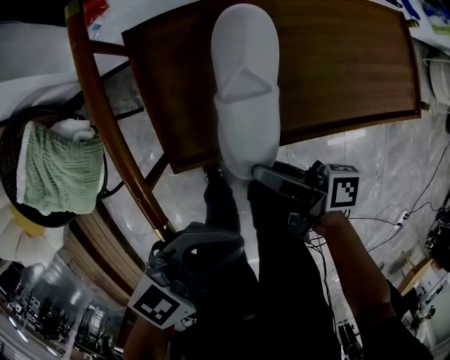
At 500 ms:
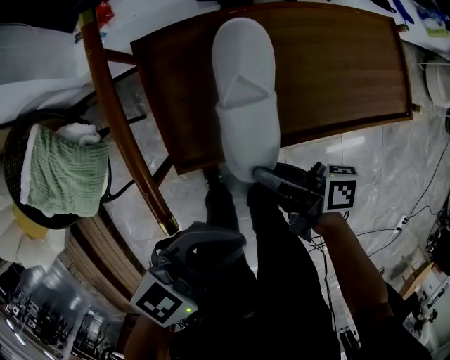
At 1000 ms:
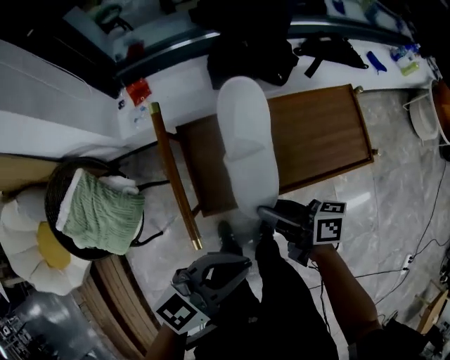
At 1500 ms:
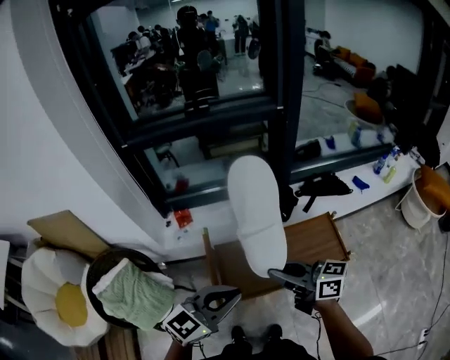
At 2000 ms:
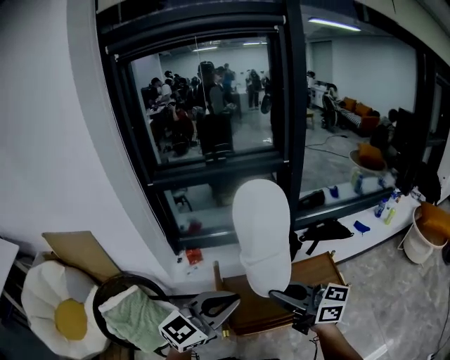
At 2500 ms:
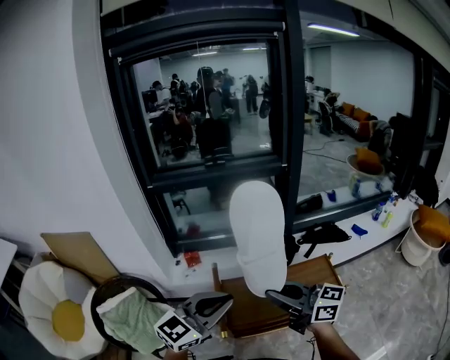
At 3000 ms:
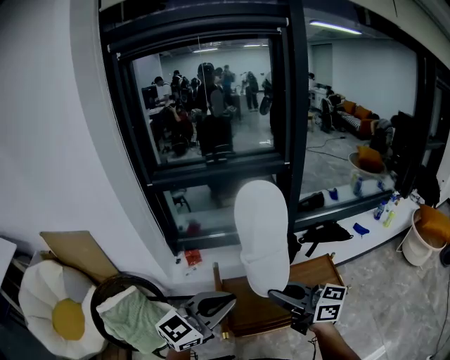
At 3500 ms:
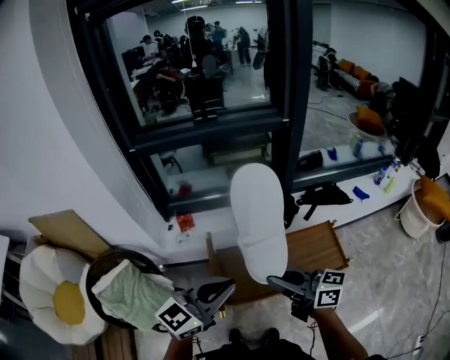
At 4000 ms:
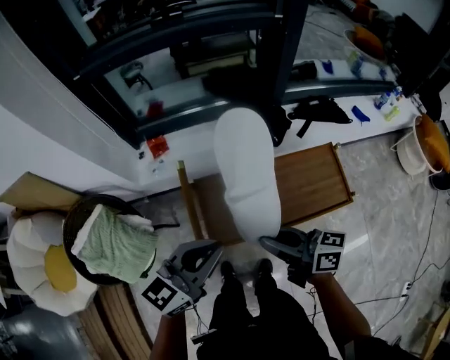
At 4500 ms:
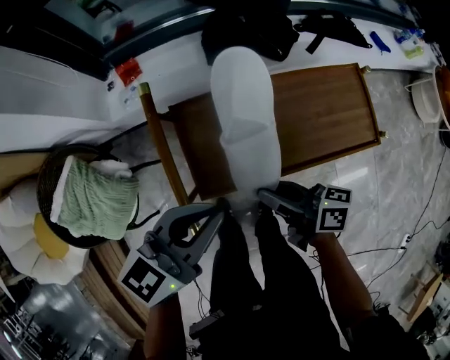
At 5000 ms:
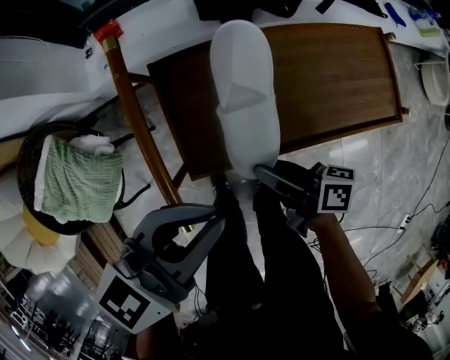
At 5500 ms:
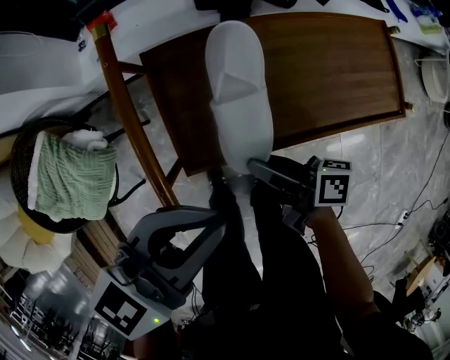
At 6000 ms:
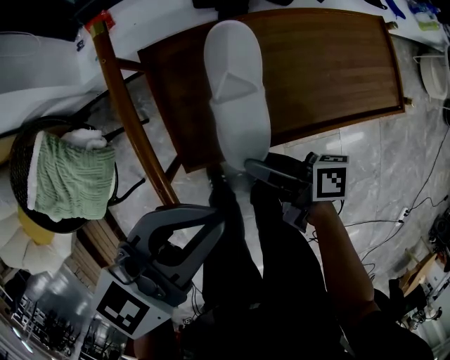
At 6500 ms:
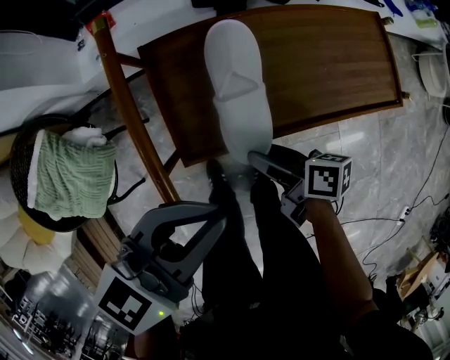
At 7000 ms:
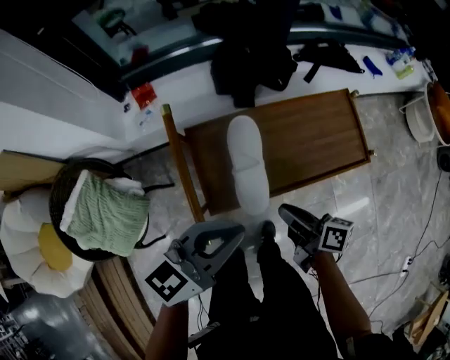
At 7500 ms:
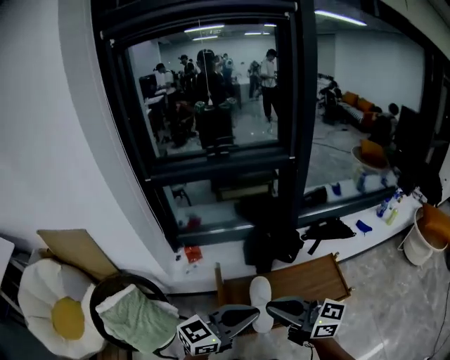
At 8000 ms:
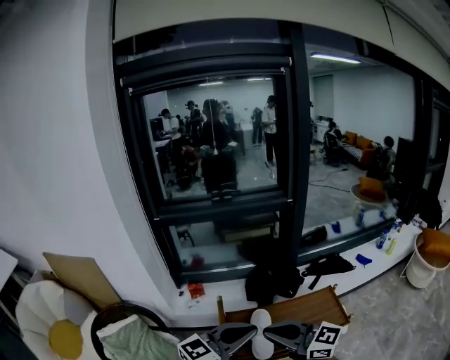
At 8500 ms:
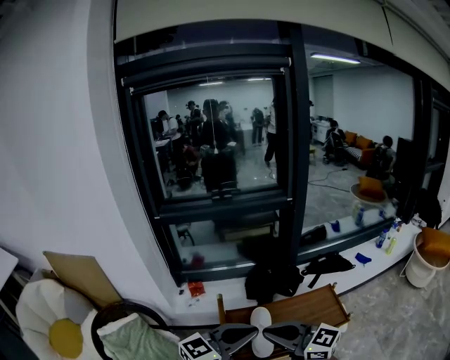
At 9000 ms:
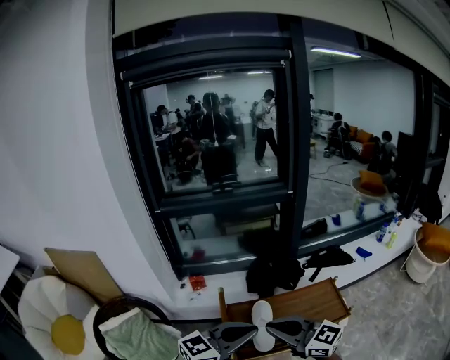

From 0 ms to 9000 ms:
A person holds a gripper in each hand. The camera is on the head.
From 0 ms to 2000 ms: Both grippers move upward, approximately 50 cm. The right gripper rotates around the line of its fingers by roughly 70 degrees, counterclockwise from behind, while the left gripper changes its angle by approximately 30 degrees.
From 2000 ms to 4500 ms: The two grippers go approximately 35 cm downward. The right gripper twists some 40 degrees clockwise, seen from behind. The left gripper rotates some 30 degrees.
From 4500 ms to 7000 ms: The right gripper travels downward and back again, roughly 15 cm each way, and opens, then closes once more.
From 7000 ms to 9000 ms: The right gripper shifts some 35 cm upward, and rotates around the line of its fingers by approximately 70 degrees, counterclockwise from behind; the left gripper travels upward by roughly 25 cm.

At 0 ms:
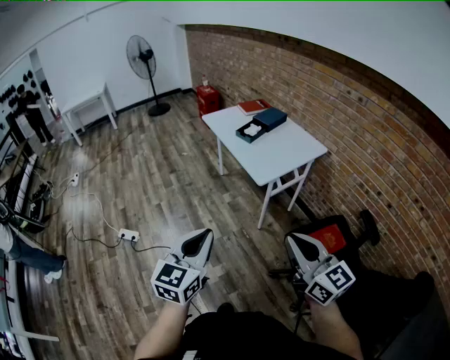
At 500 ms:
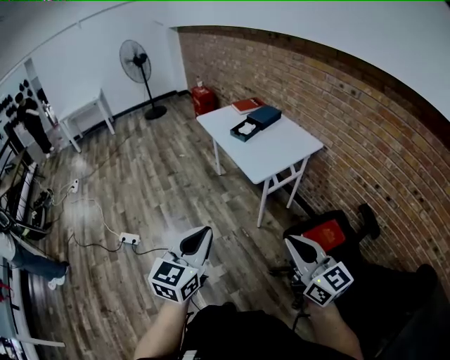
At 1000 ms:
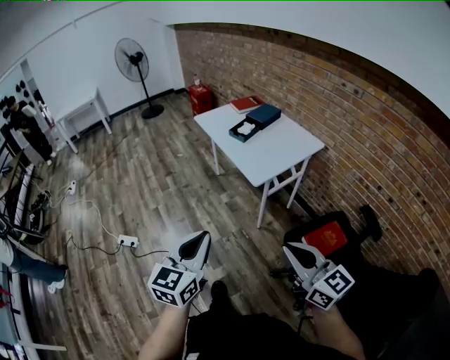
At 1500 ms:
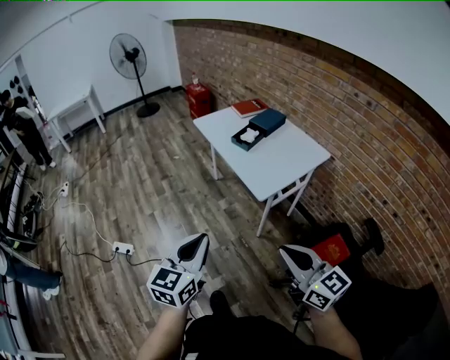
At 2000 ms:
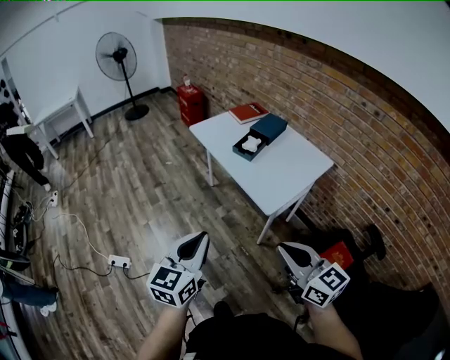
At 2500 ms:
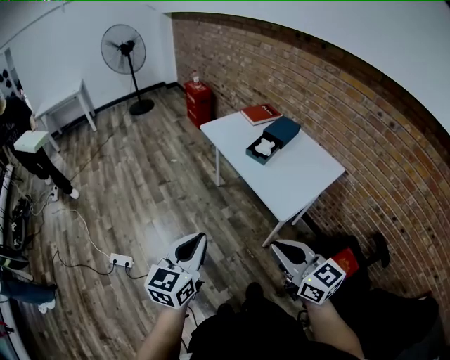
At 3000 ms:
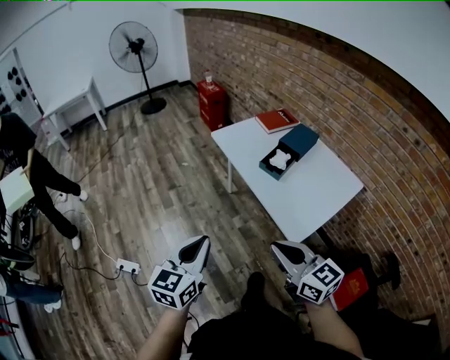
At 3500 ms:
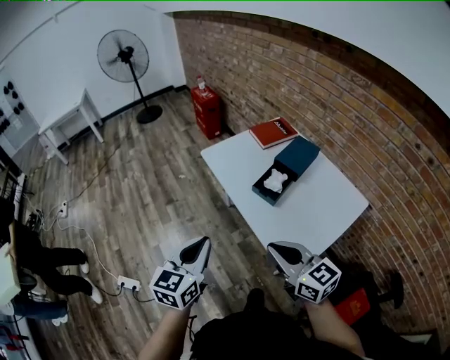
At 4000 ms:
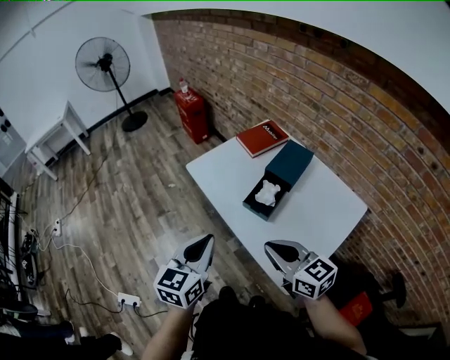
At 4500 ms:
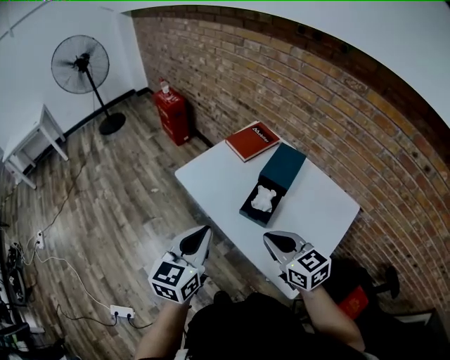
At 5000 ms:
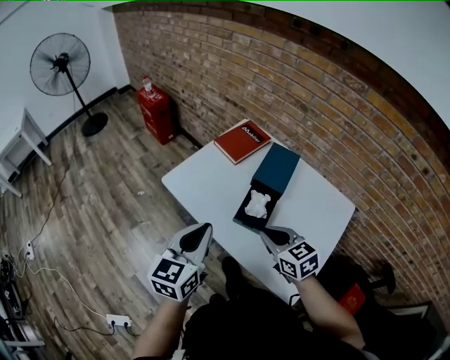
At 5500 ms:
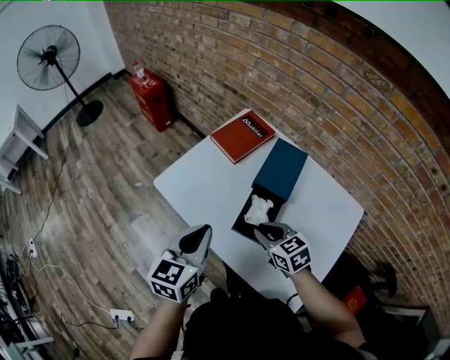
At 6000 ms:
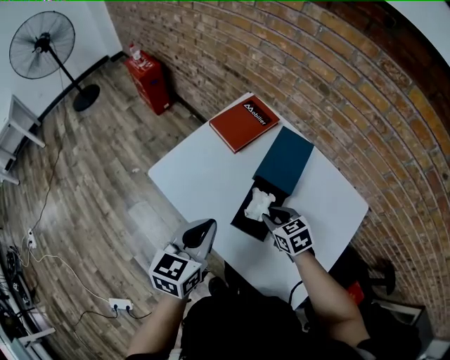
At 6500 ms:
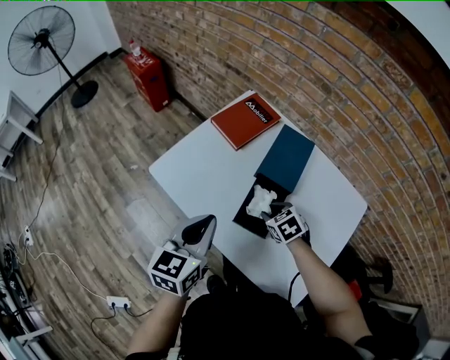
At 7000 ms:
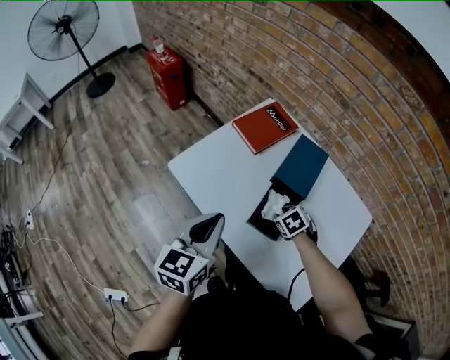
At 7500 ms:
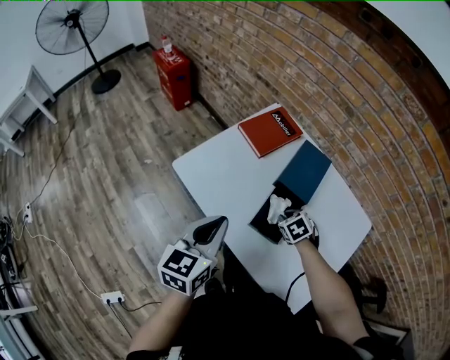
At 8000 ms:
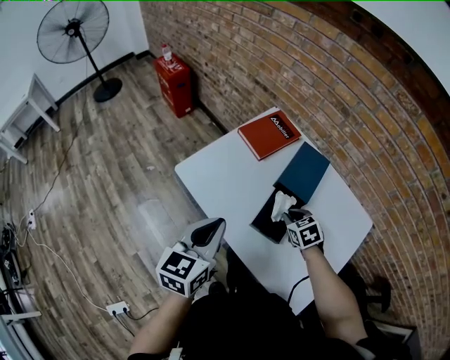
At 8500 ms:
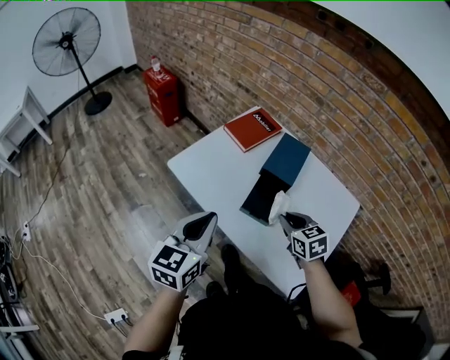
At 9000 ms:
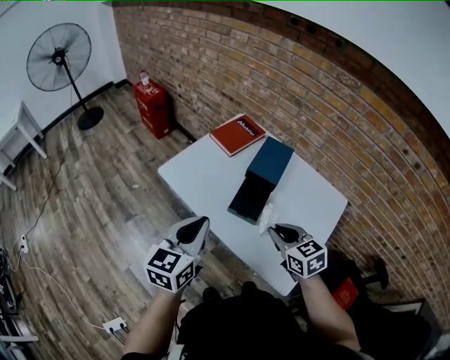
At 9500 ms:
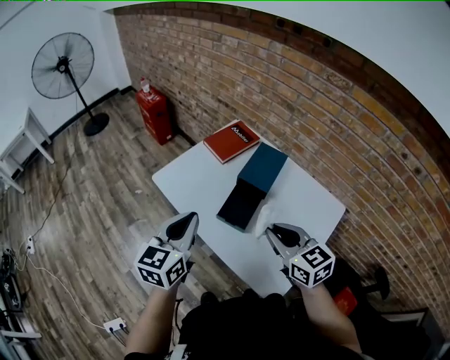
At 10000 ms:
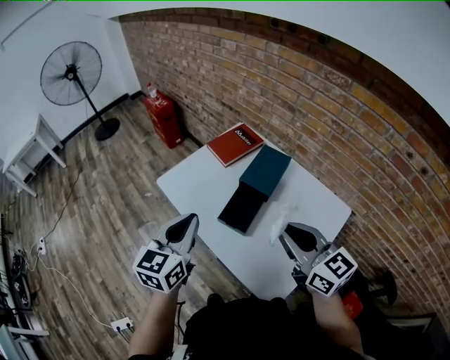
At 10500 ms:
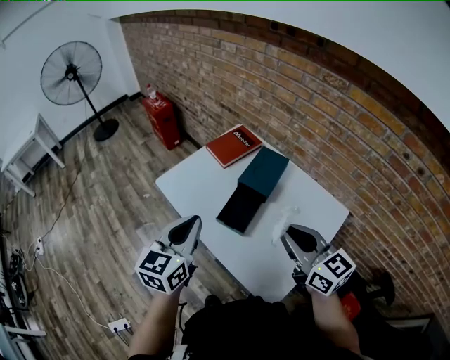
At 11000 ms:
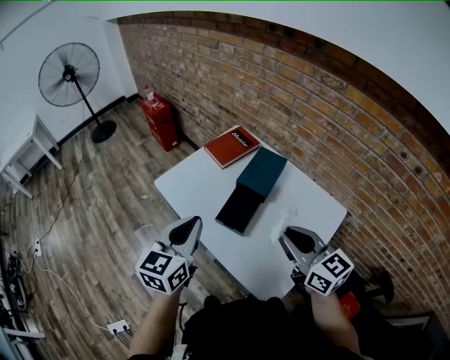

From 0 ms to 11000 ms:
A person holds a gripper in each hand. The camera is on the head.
From 0 ms to 2000 ms: The two grippers go roughly 20 cm forward.
From 2000 ms to 3500 ms: Both grippers travel together forward, roughly 30 cm.
From 3500 ms to 5500 ms: The right gripper is displaced forward and downward by roughly 35 cm, and turns by about 30 degrees; the left gripper moves forward, roughly 30 cm.
From 5500 ms to 7500 ms: The right gripper travels downward, forward and to the right by roughly 15 cm, and tilts its fingers roughly 30 degrees downward.
From 7500 ms to 9000 ms: The left gripper shifts approximately 10 cm backward and upward. Meanwhile the right gripper heads upward and backward, covering about 25 cm, and points its fingers about 30 degrees further upward.
From 9000 ms to 11000 ms: The left gripper heads to the right, covering roughly 5 cm; the right gripper goes some 15 cm upward and to the right, and swivels some 30 degrees.

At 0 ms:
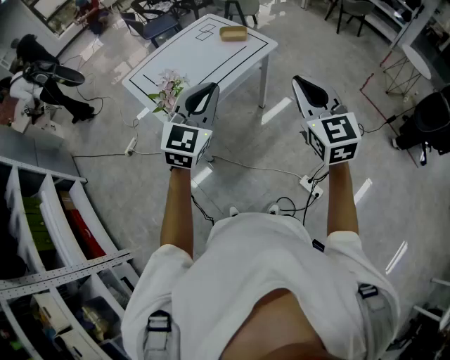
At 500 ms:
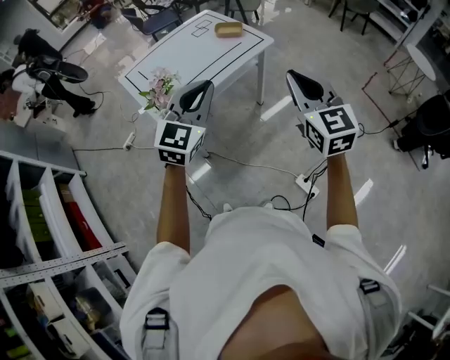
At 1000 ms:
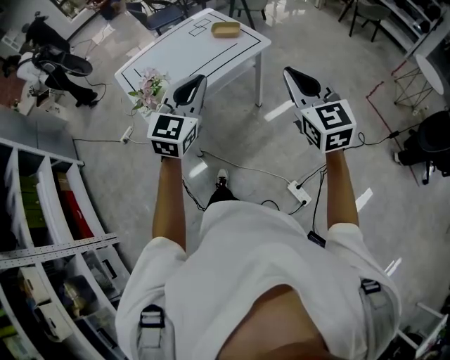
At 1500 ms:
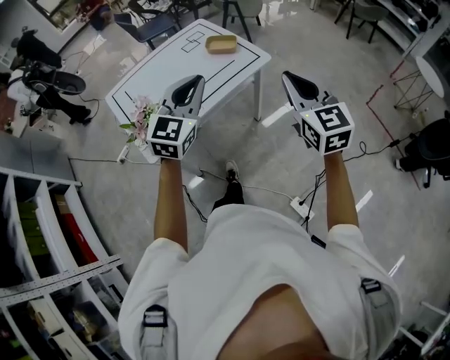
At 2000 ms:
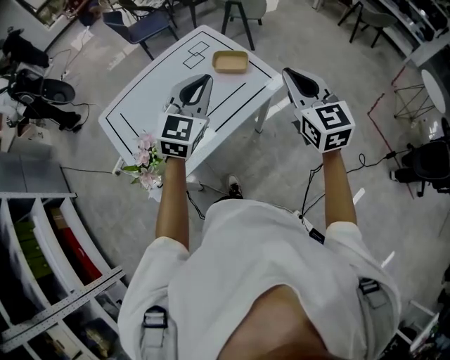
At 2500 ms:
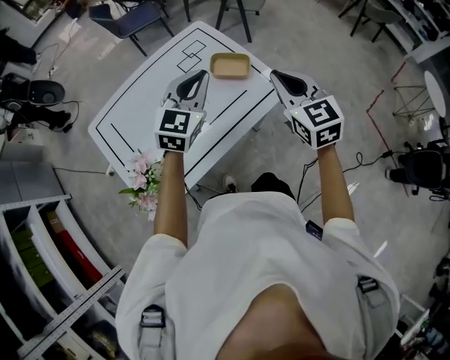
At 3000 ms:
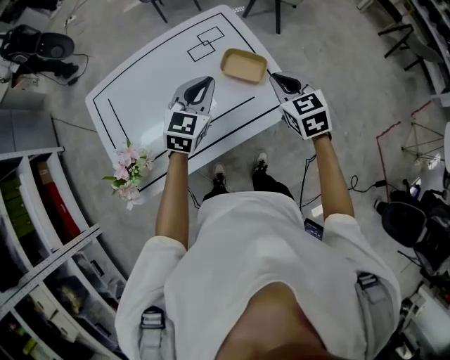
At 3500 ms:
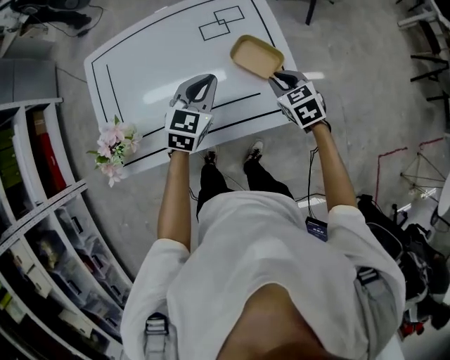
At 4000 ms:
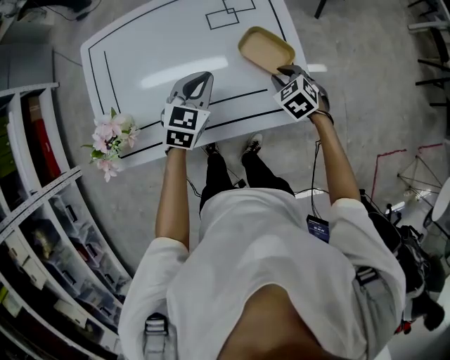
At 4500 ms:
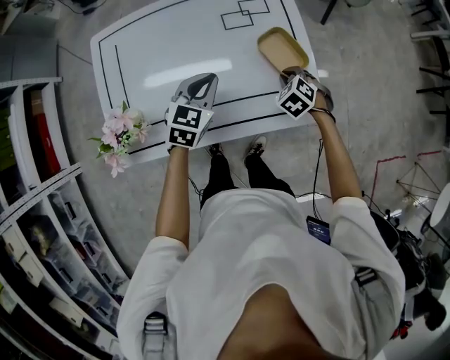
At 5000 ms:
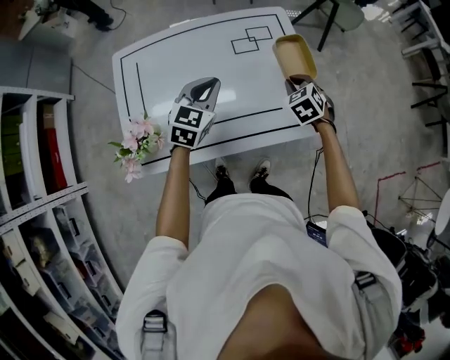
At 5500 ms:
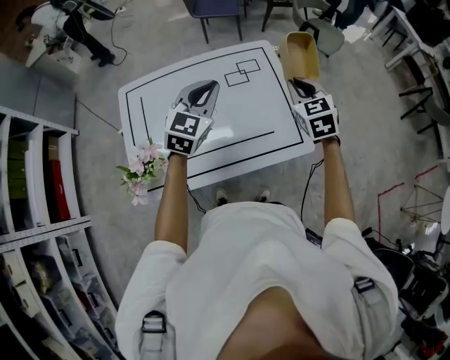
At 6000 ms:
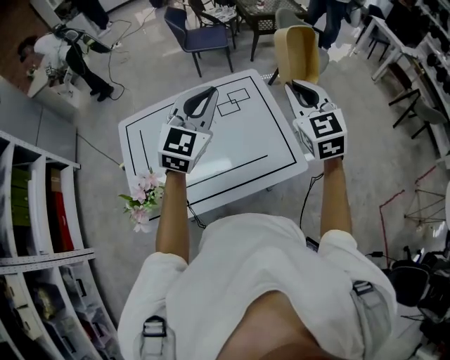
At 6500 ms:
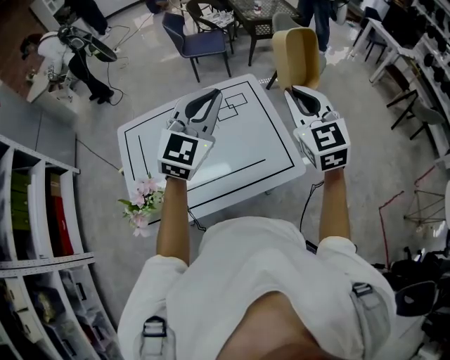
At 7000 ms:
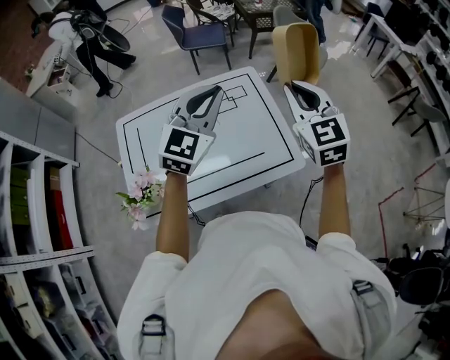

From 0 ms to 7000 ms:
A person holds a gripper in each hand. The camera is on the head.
From 0 ms to 2000 ms: The pair of grippers is taken forward, about 40 cm.
From 2000 ms to 3500 ms: The left gripper moves roughly 30 cm, and swivels some 40 degrees, while the right gripper is displaced downward by approximately 30 cm, and tilts its fingers about 40 degrees downward.
From 3500 ms to 5000 ms: The right gripper goes downward and returns, some 10 cm each way. Meanwhile the left gripper shifts approximately 10 cm to the left.
From 5000 ms to 7000 ms: The grippers both shift upward by roughly 30 cm. The right gripper points its fingers about 40 degrees further upward, while the left gripper swivels some 30 degrees.
